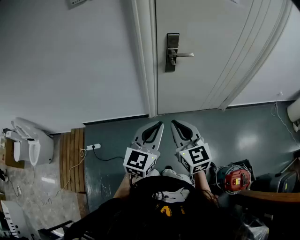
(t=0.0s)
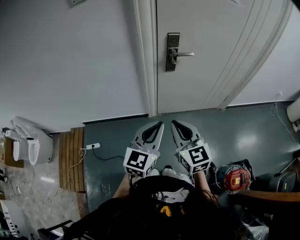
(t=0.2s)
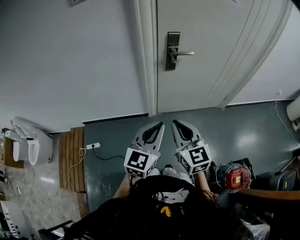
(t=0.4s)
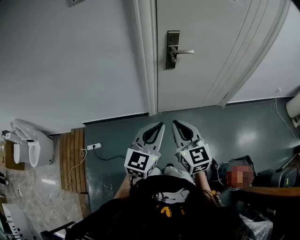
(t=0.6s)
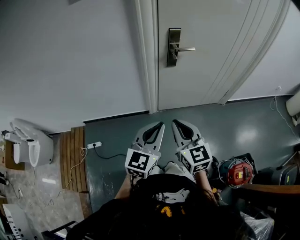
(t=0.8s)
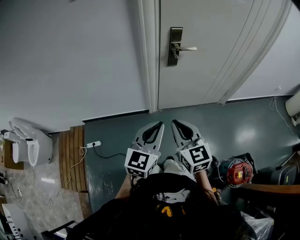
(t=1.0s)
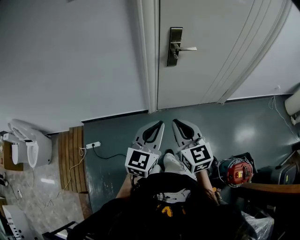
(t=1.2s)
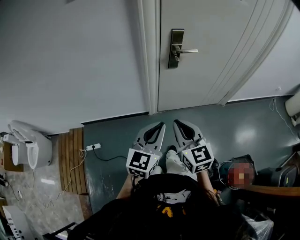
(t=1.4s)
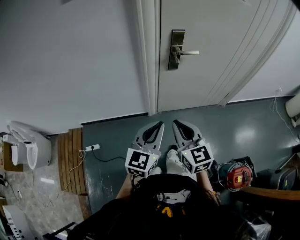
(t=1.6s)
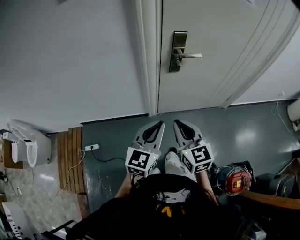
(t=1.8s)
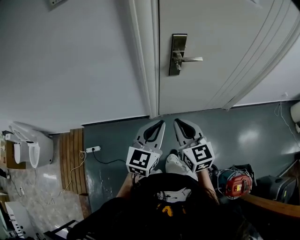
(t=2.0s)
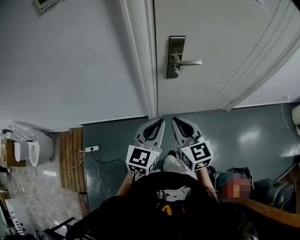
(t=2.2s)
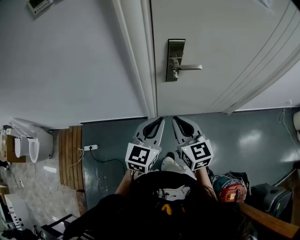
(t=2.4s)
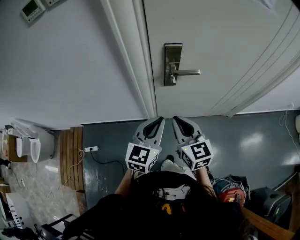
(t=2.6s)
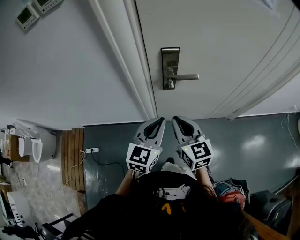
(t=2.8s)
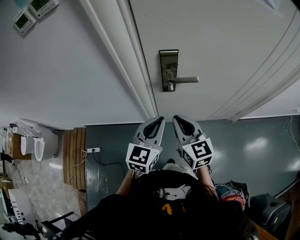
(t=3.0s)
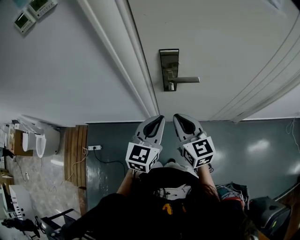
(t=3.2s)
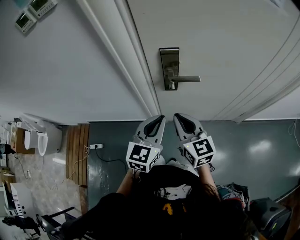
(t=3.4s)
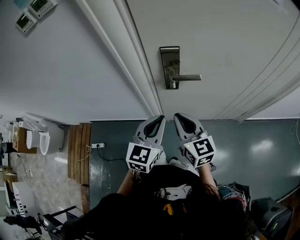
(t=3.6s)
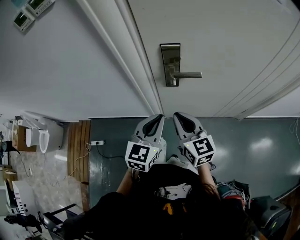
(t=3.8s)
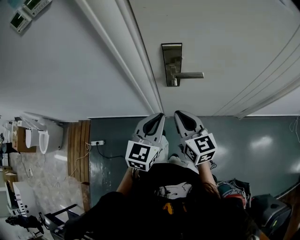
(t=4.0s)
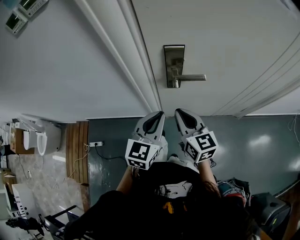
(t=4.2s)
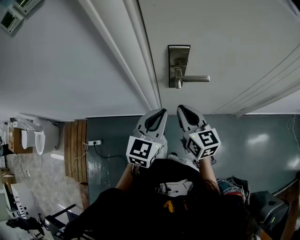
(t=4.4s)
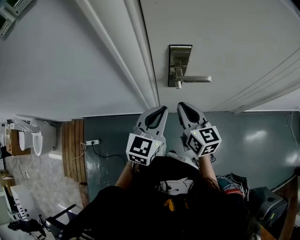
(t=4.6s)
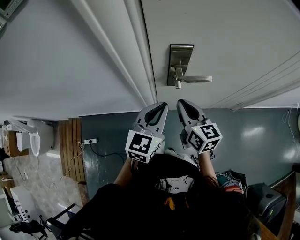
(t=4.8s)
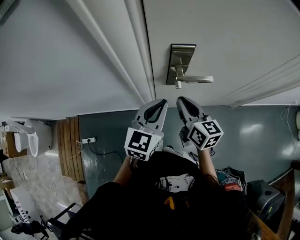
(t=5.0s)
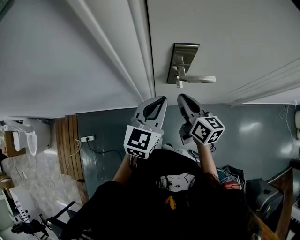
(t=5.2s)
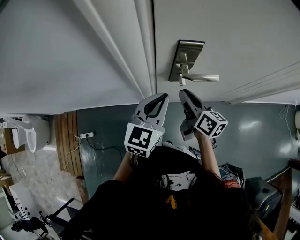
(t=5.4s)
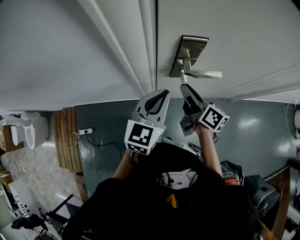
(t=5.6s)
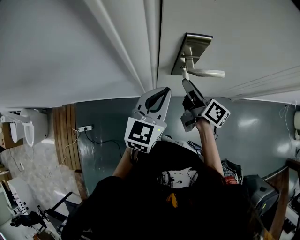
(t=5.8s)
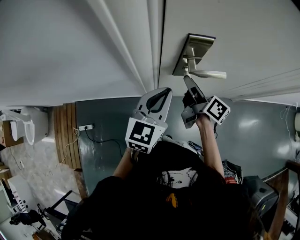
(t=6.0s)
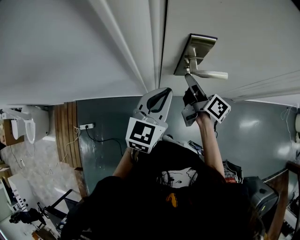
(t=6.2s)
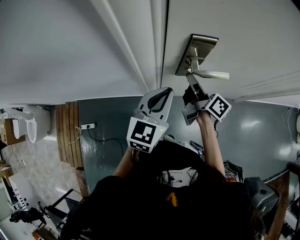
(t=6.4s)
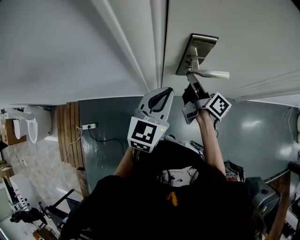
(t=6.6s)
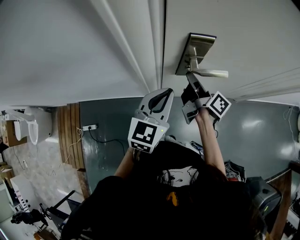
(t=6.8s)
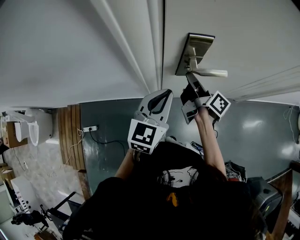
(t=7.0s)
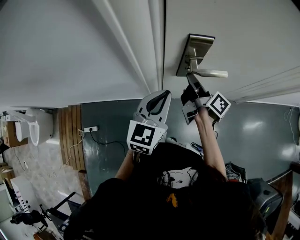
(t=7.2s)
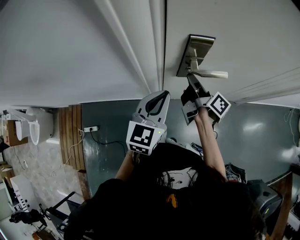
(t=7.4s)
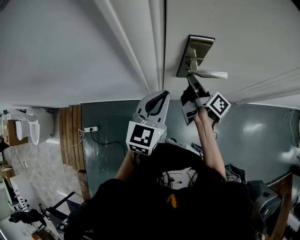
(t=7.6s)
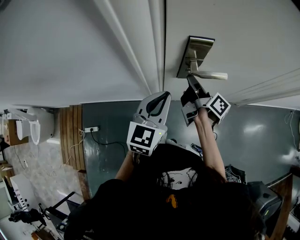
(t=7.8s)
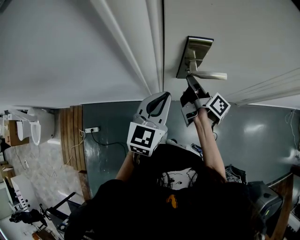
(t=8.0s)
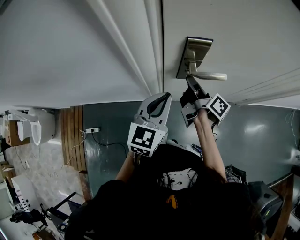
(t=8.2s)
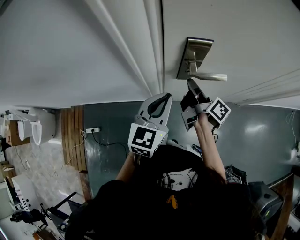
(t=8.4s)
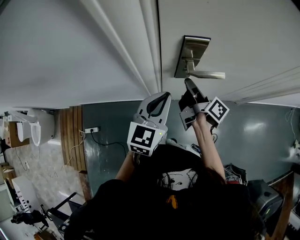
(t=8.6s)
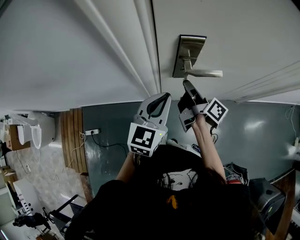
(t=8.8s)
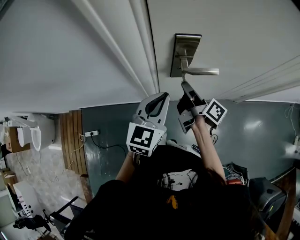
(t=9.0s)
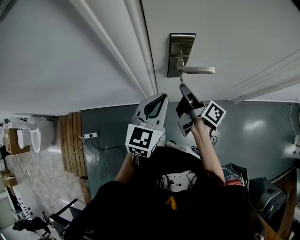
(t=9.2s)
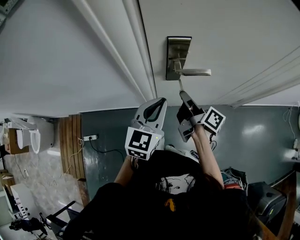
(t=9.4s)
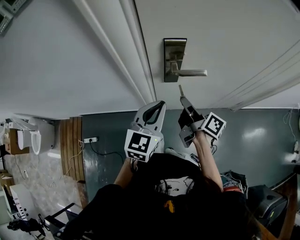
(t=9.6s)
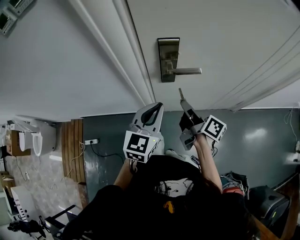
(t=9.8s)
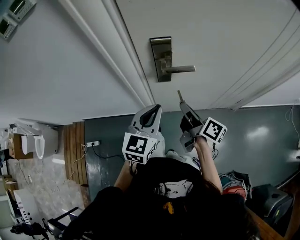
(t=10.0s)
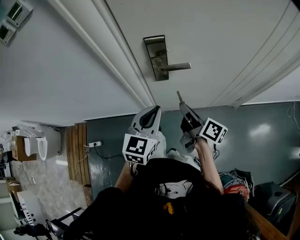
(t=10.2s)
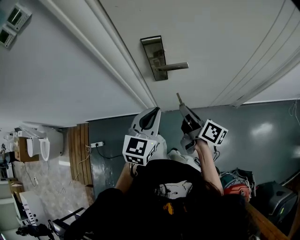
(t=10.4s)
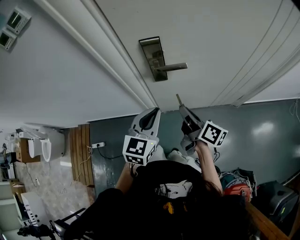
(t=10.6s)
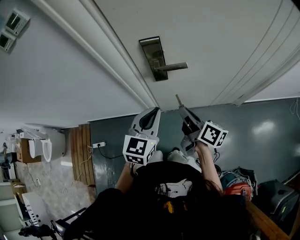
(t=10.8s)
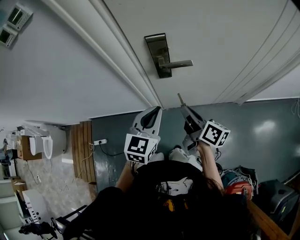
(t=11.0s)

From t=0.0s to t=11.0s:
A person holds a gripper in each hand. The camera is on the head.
From t=0.0s to t=1.6s: The right gripper shifts by about 5 cm. Meanwhile the left gripper ends up about 5 cm from where it was.
From t=1.6s to t=3.2s: Both grippers travel together forward and to the right, approximately 25 cm.
From t=3.2s to t=4.8s: Both grippers travel together forward, roughly 10 cm.
From t=4.8s to t=6.2s: The right gripper moves forward, about 10 cm, rolls clockwise, seen from behind, by roughly 40 degrees, and opens.
From t=6.2s to t=7.8s: There are only small adjustments of the grippers.
From t=7.8s to t=9.4s: The right gripper goes approximately 5 cm backward.
From t=9.4s to t=11.0s: The left gripper shifts some 5 cm backward; the right gripper shifts some 10 cm backward.

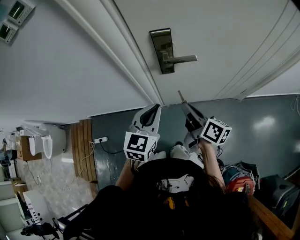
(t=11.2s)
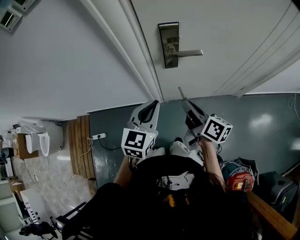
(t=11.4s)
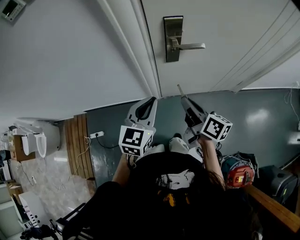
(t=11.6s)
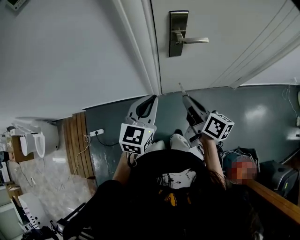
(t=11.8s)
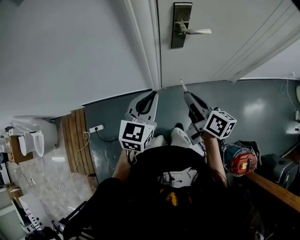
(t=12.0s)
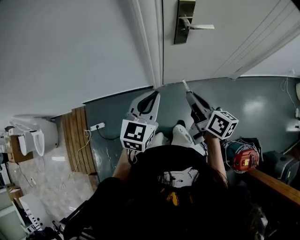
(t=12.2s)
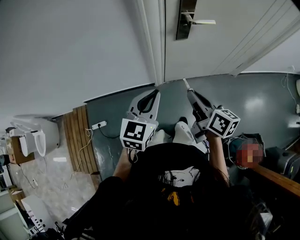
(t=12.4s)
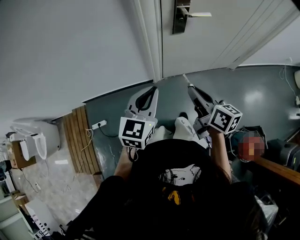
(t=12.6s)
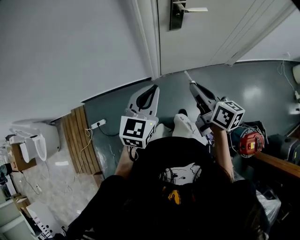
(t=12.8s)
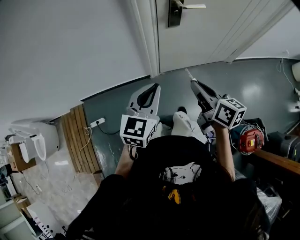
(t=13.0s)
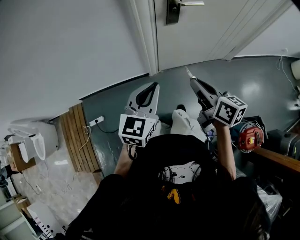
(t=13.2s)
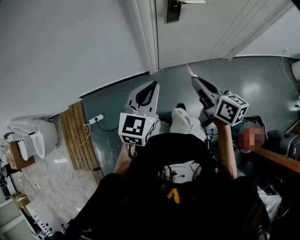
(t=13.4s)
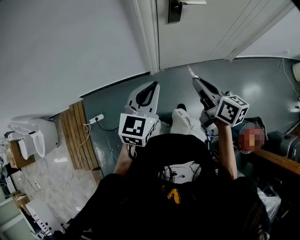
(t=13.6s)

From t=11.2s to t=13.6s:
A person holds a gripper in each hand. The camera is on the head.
From t=11.2s to t=12.4s: The left gripper travels to the left and backward by approximately 20 cm; the right gripper shifts roughly 20 cm backward and to the left.
From t=12.4s to t=13.6s: The right gripper shifts by approximately 5 cm; the left gripper shifts some 5 cm backward.

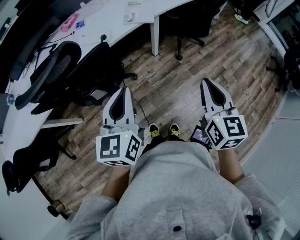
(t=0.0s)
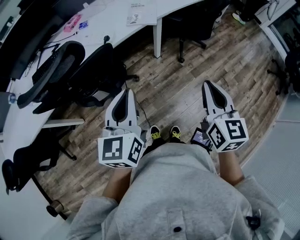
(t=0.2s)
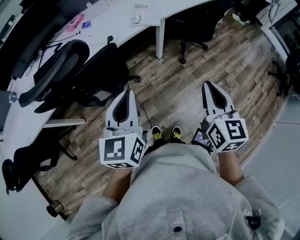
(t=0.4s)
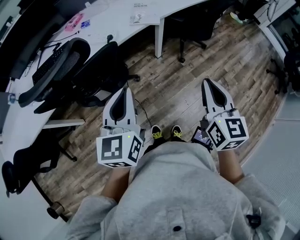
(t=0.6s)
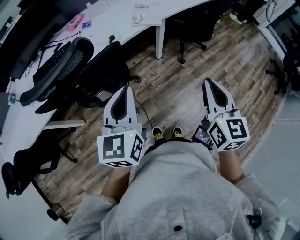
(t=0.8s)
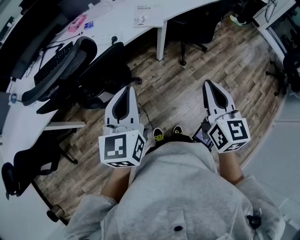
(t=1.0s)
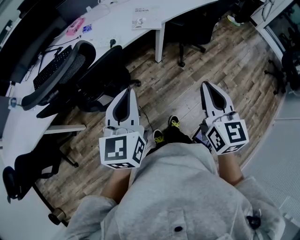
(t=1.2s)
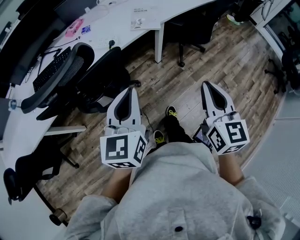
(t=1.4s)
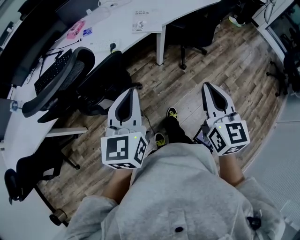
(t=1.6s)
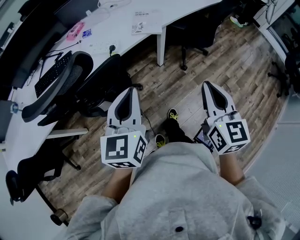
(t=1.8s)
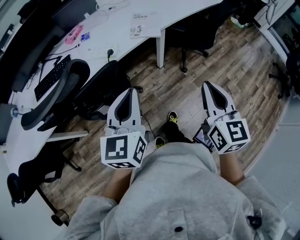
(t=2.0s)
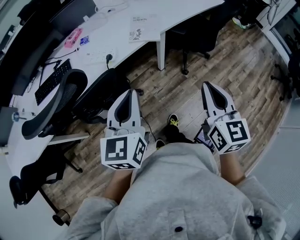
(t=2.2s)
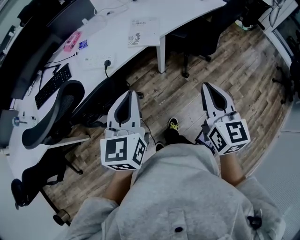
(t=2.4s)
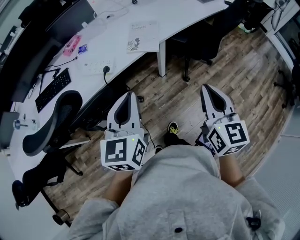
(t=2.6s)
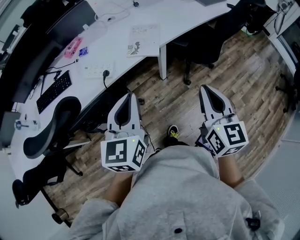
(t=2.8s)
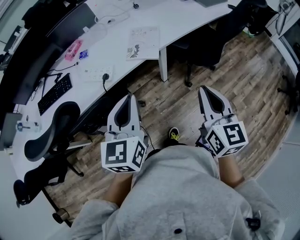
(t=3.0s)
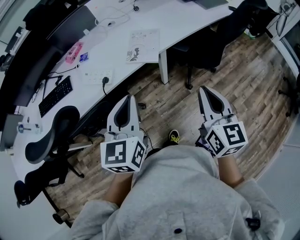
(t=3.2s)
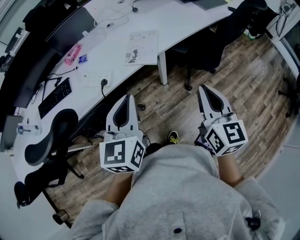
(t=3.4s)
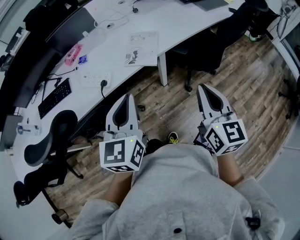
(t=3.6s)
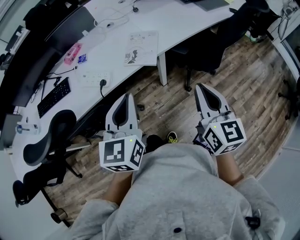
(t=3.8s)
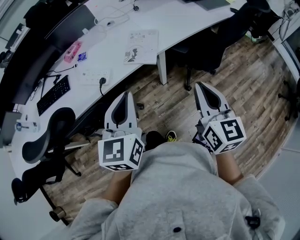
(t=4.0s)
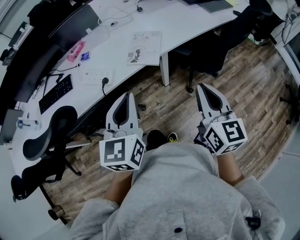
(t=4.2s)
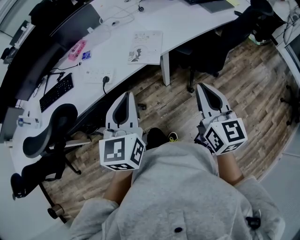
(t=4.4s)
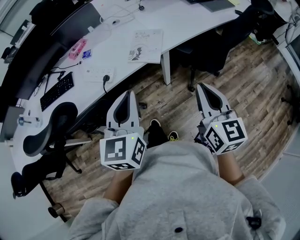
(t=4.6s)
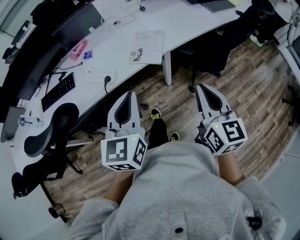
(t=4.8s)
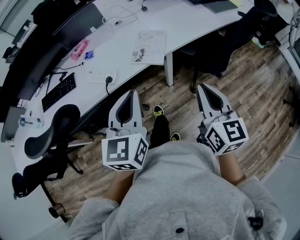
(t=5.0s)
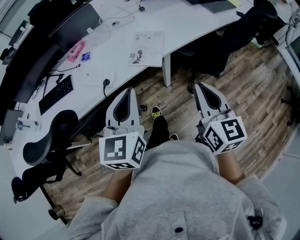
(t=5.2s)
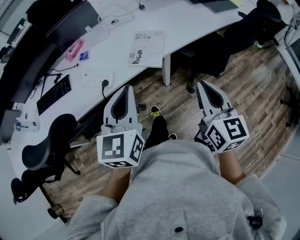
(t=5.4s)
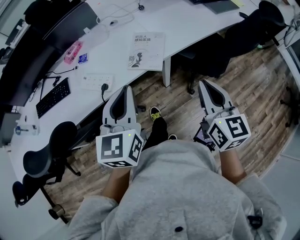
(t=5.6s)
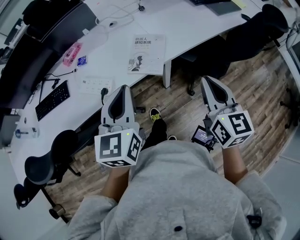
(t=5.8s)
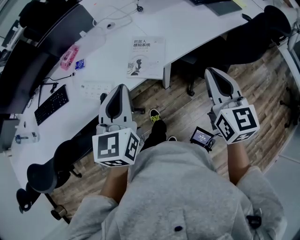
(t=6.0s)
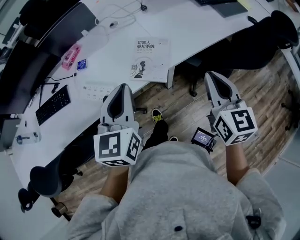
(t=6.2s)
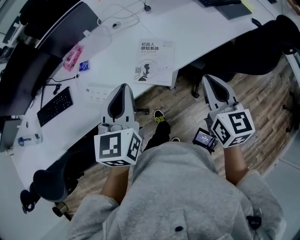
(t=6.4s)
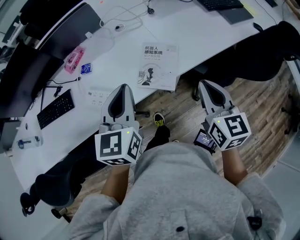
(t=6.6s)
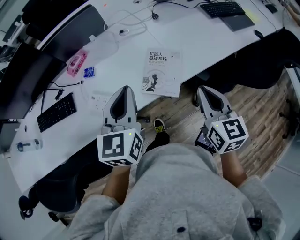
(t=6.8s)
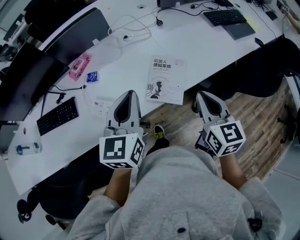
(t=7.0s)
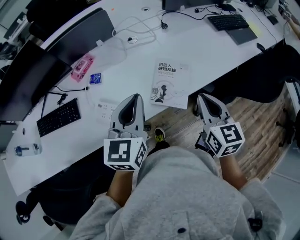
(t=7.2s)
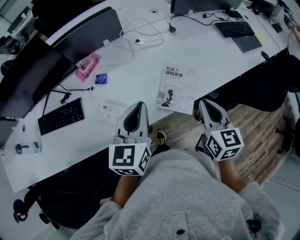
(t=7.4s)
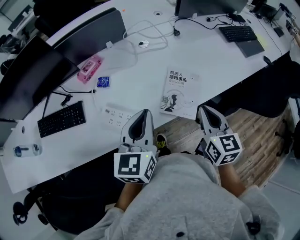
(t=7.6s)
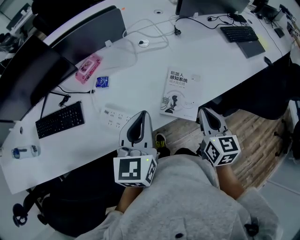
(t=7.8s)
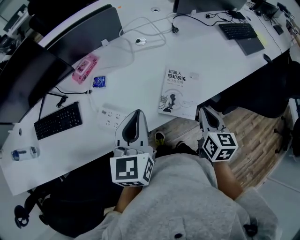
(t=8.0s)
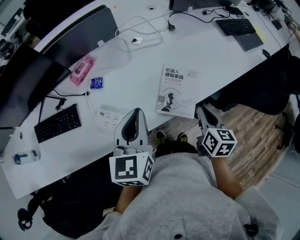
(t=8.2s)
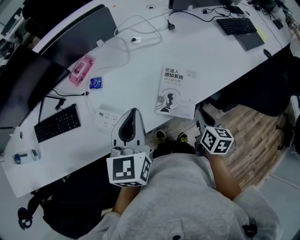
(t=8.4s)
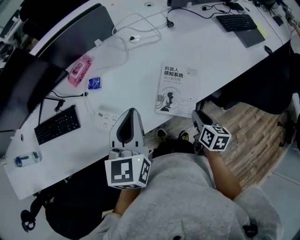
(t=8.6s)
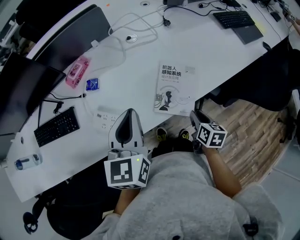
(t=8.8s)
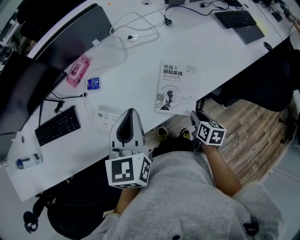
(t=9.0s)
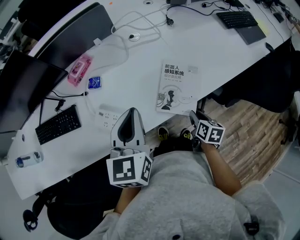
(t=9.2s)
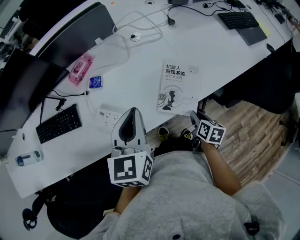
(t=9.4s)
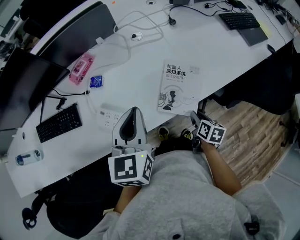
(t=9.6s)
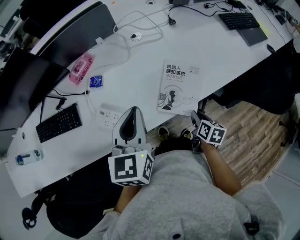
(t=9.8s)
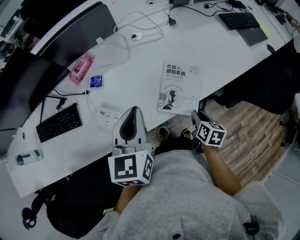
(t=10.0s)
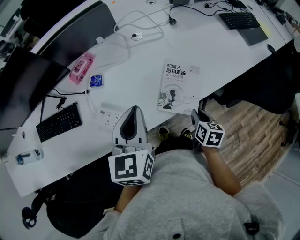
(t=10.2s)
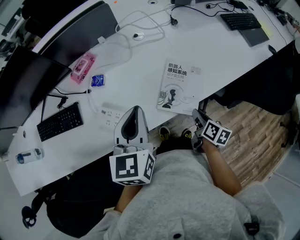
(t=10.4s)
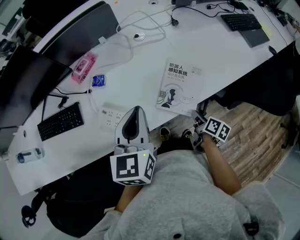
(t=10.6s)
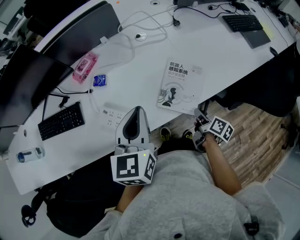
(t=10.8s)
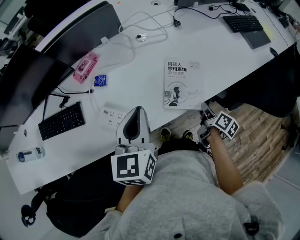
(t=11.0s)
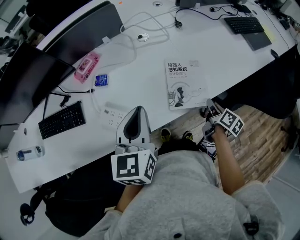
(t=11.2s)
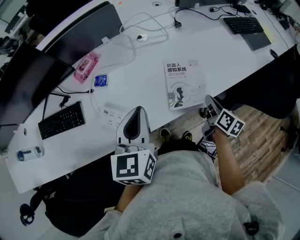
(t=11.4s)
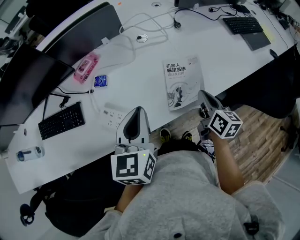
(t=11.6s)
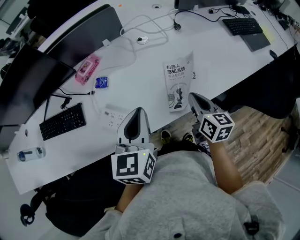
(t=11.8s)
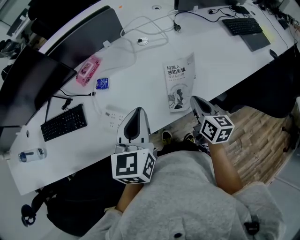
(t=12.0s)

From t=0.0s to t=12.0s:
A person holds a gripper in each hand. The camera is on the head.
From t=0.0s to t=1.6s: The right gripper goes about 5 cm to the left.
From t=1.6s to t=3.0s: Both grippers travel together forward and to the right, approximately 20 cm.
From t=3.0s to t=4.4s: The grippers make only small movements.
From t=4.4s to t=6.0s: The two grippers go roughly 15 cm forward.
From t=6.0s to t=7.6s: The right gripper is displaced to the left, forward and downward by about 20 cm. The left gripper shifts about 15 cm to the left and forward.
From t=7.6s to t=9.0s: The right gripper travels downward by some 20 cm, and swivels roughly 30 degrees.
From t=9.0s to t=10.4s: The grippers move only a little.
From t=10.4s to t=12.0s: The right gripper moves upward and forward, approximately 10 cm, and swivels roughly 30 degrees.
